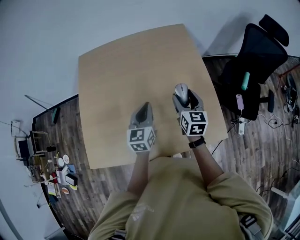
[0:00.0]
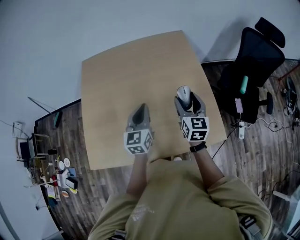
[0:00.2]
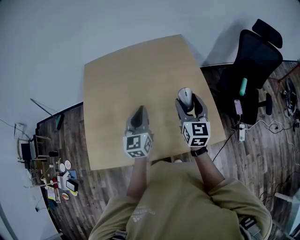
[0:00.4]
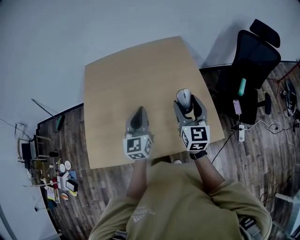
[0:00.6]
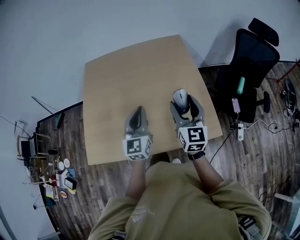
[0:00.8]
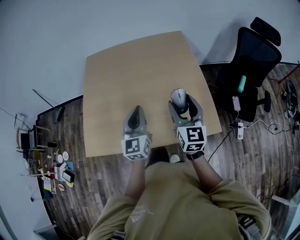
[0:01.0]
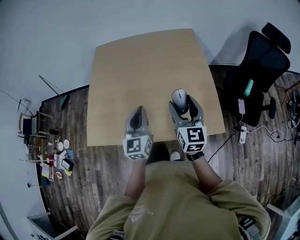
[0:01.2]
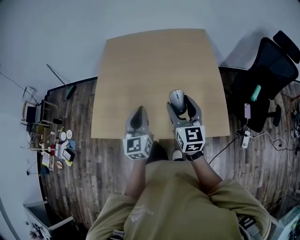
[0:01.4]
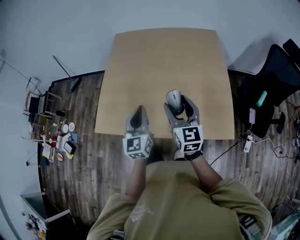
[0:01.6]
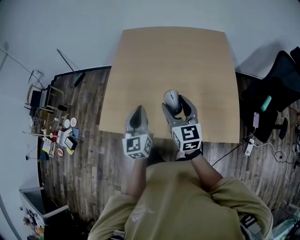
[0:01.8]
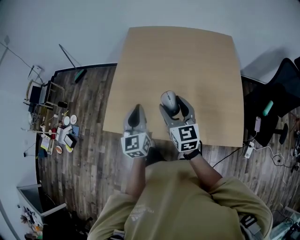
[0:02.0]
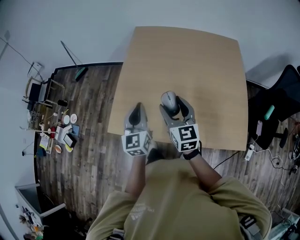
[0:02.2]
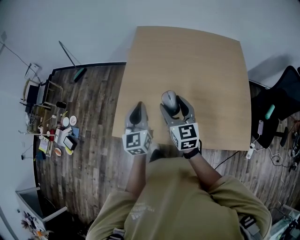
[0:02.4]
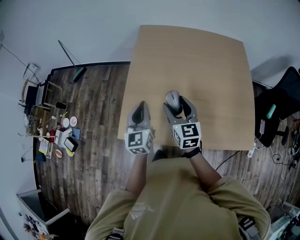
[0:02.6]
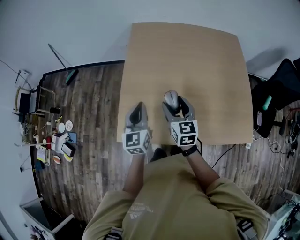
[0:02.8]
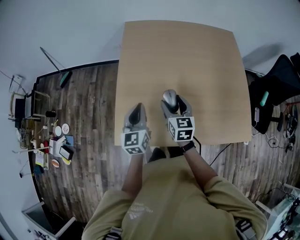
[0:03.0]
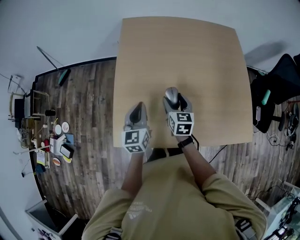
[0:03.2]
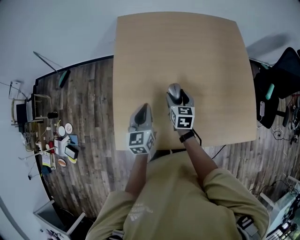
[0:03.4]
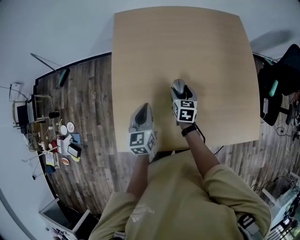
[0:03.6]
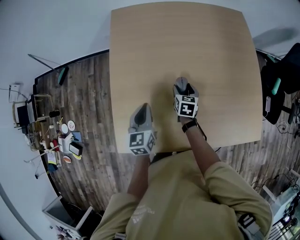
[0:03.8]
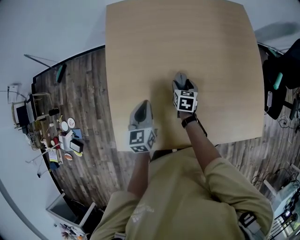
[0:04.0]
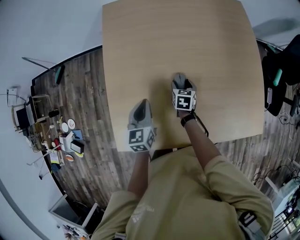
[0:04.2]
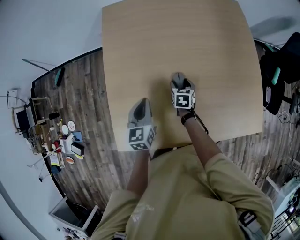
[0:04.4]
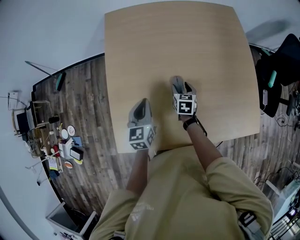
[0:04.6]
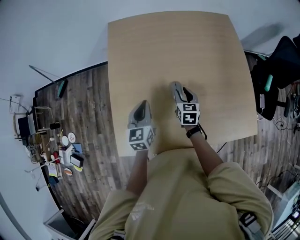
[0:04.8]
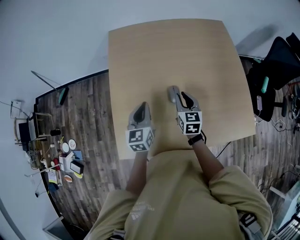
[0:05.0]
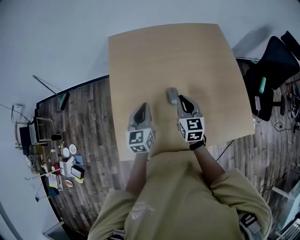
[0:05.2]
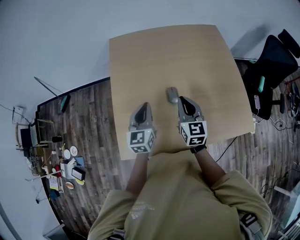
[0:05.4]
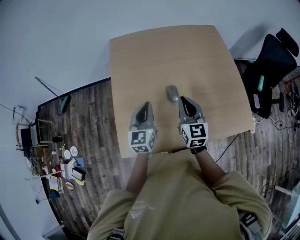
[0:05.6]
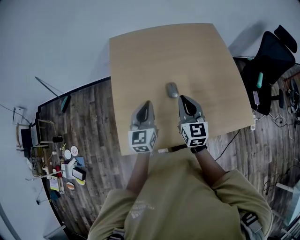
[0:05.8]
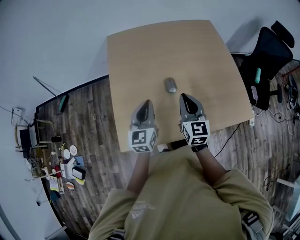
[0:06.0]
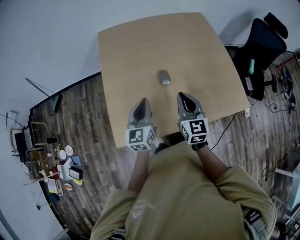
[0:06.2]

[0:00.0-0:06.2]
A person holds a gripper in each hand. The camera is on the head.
0:00.0 to 0:01.6: The left gripper goes about 20 cm backward and to the left, and turns by about 20 degrees; the right gripper heads backward, to the left and upward, covering roughly 25 cm, and swivels about 30 degrees.
0:01.6 to 0:03.2: The grippers both shift to the left, forward and downward by approximately 35 cm. The right gripper swivels approximately 30 degrees.
0:03.2 to 0:04.6: The right gripper shifts some 20 cm downward, forward and to the right. The left gripper moves forward and downward, approximately 10 cm.
0:04.6 to 0:06.2: The left gripper moves backward and upward, some 15 cm; the right gripper goes about 30 cm upward and backward, tips its fingers upward by approximately 30 degrees, and closes.

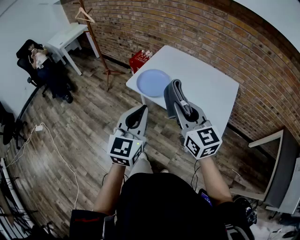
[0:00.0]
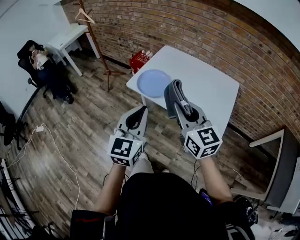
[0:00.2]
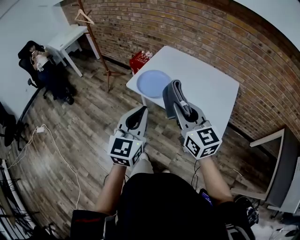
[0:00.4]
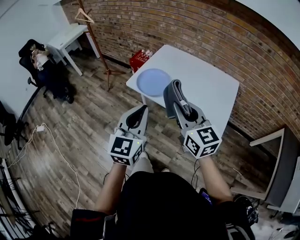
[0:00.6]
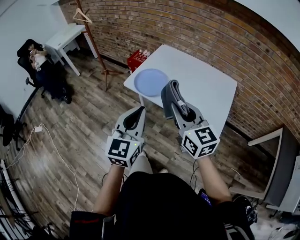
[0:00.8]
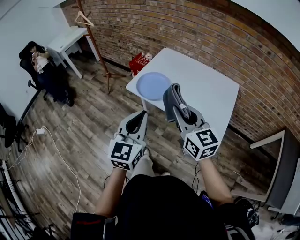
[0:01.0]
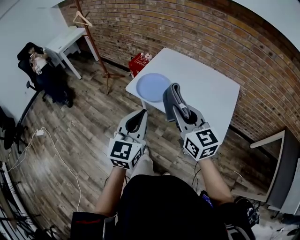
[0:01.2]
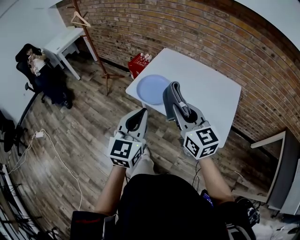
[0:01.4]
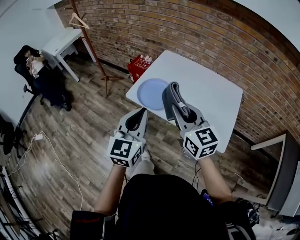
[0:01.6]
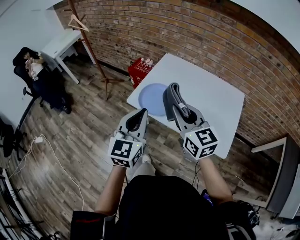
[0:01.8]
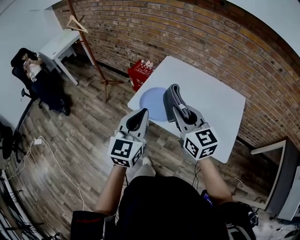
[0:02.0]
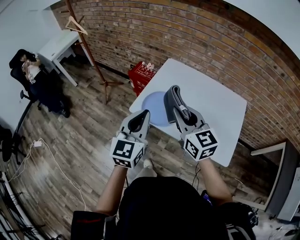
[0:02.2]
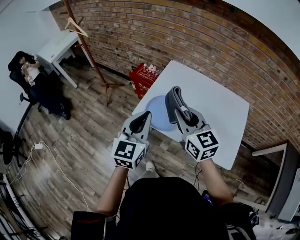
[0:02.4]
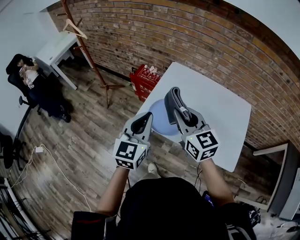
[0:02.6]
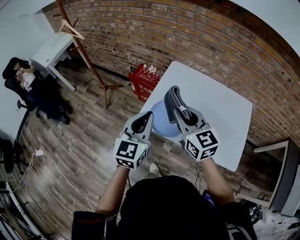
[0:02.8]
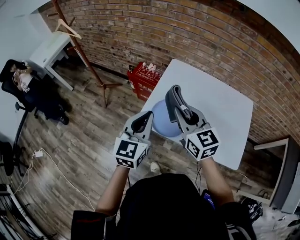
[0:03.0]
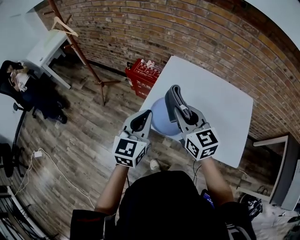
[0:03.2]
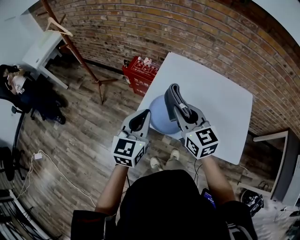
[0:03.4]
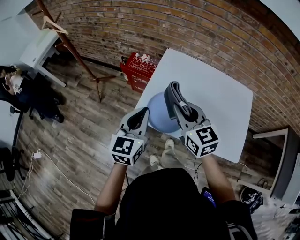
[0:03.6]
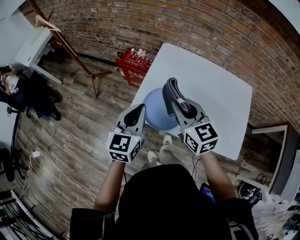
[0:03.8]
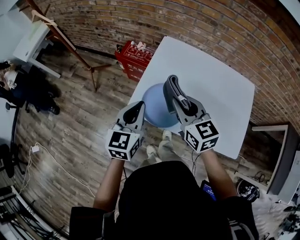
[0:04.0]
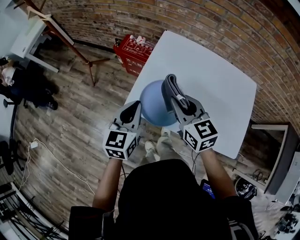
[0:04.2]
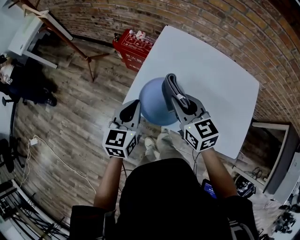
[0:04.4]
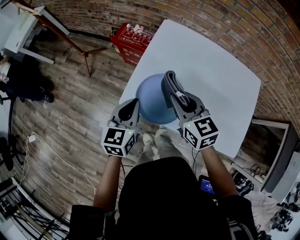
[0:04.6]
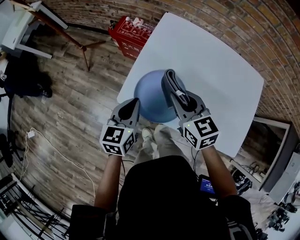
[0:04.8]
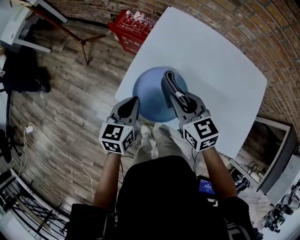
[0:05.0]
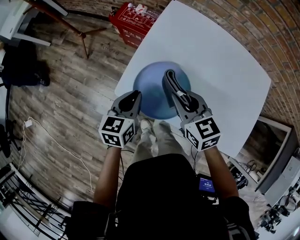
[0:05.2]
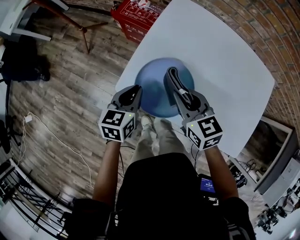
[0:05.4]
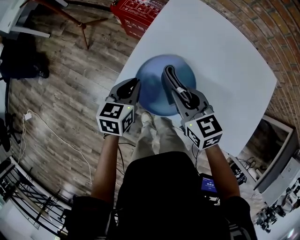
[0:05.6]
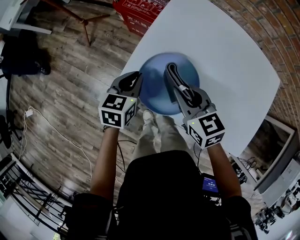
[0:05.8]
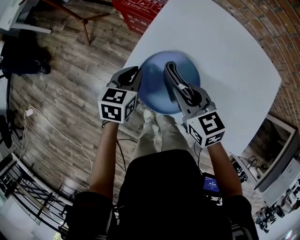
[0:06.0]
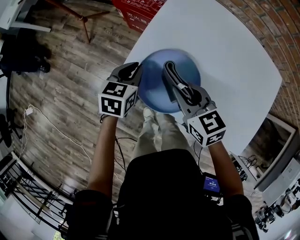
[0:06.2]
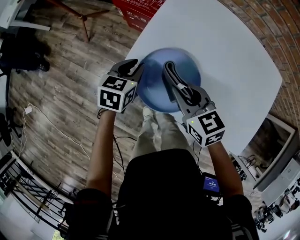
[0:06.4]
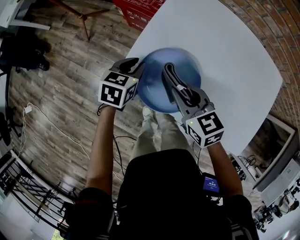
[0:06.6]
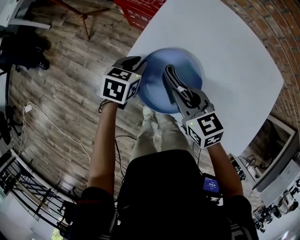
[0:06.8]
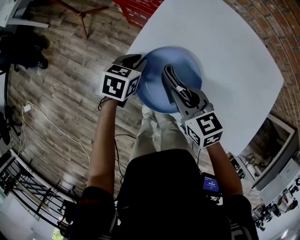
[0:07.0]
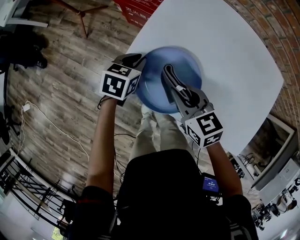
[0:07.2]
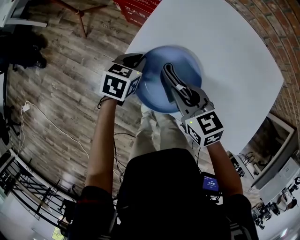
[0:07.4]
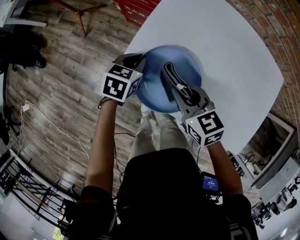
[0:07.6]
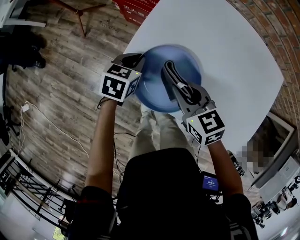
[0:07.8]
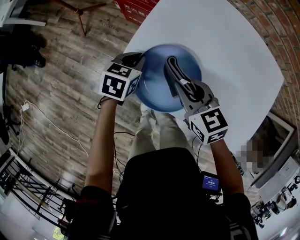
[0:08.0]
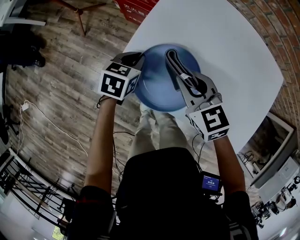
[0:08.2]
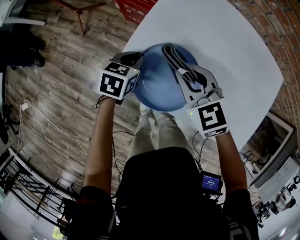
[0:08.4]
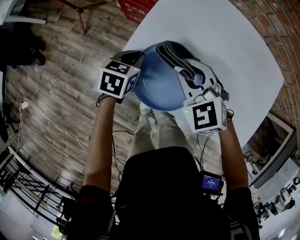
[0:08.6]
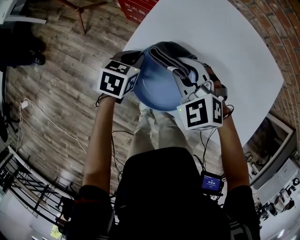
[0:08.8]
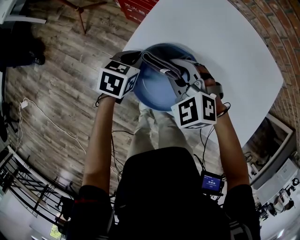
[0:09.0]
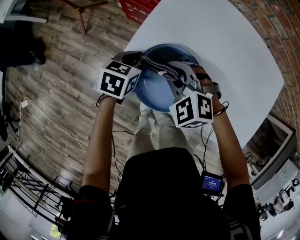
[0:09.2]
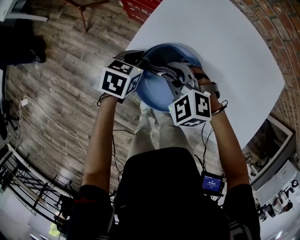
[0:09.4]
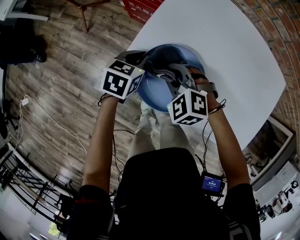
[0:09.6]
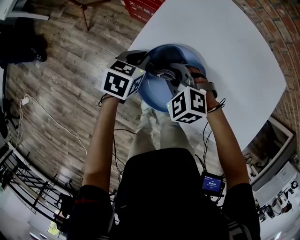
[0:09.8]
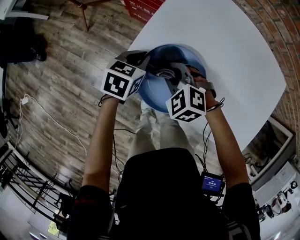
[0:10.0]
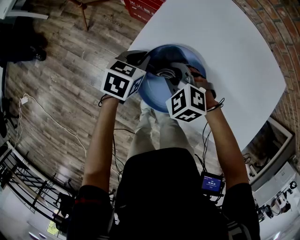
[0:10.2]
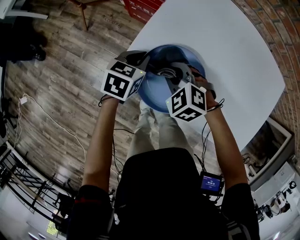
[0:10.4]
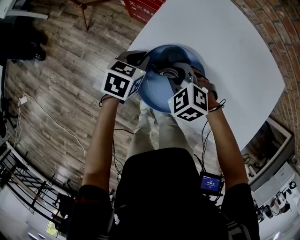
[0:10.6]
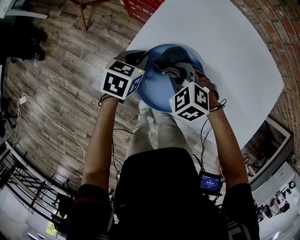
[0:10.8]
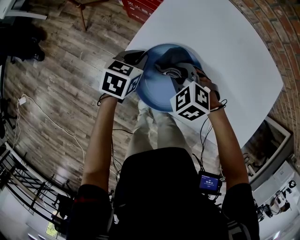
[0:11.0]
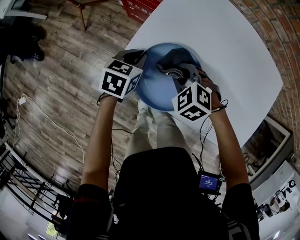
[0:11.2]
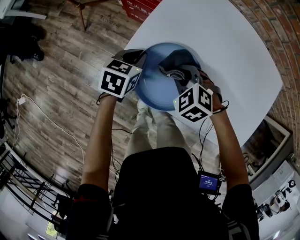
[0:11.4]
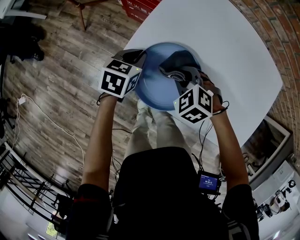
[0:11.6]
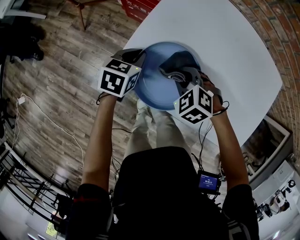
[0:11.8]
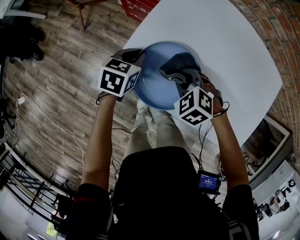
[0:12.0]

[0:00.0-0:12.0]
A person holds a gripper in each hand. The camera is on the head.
0:00.0 to 0:01.6: The grippers both shift forward by about 10 cm.
0:01.6 to 0:03.0: The two grippers go some 20 cm forward and to the left.
0:03.0 to 0:04.4: Both grippers move downward and forward, about 15 cm.
0:04.4 to 0:06.0: The left gripper is displaced downward and forward by roughly 15 cm. Meanwhile the right gripper heads downward, covering approximately 10 cm.
0:06.0 to 0:07.6: The left gripper changes place by roughly 5 cm.
0:07.6 to 0:09.0: The right gripper ends up roughly 5 cm from where it was, and rotates around the line of its fingers by some 50 degrees, counterclockwise from behind.
0:09.0 to 0:10.4: The right gripper shifts some 5 cm downward.
0:10.4 to 0:12.0: The right gripper travels to the right by some 5 cm.

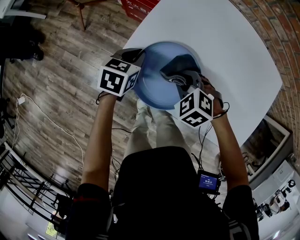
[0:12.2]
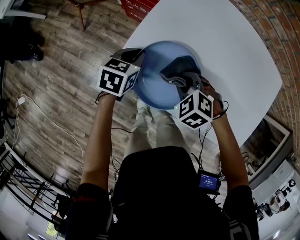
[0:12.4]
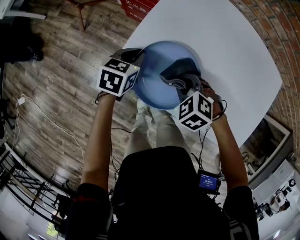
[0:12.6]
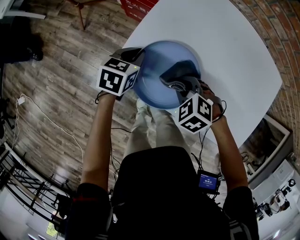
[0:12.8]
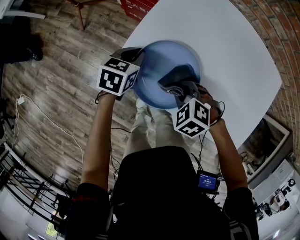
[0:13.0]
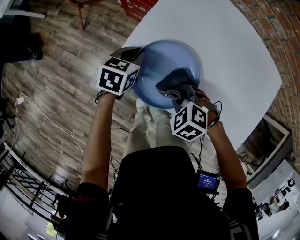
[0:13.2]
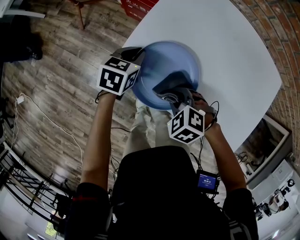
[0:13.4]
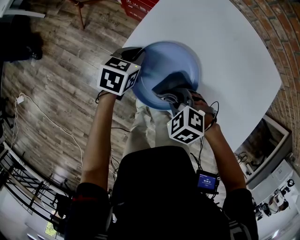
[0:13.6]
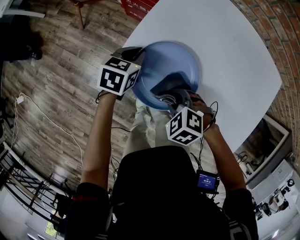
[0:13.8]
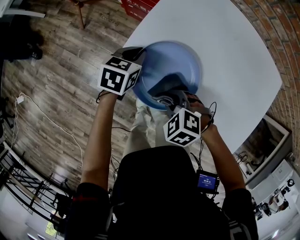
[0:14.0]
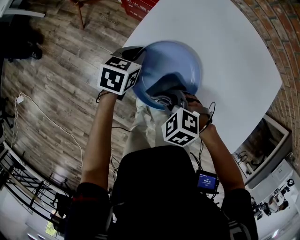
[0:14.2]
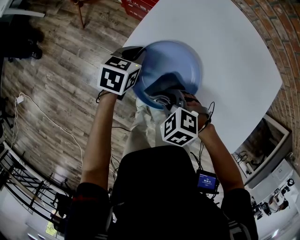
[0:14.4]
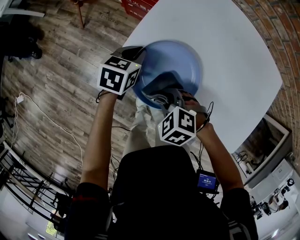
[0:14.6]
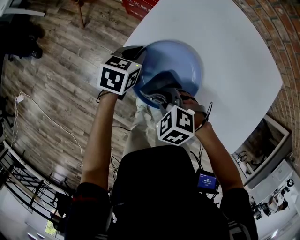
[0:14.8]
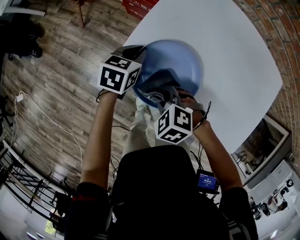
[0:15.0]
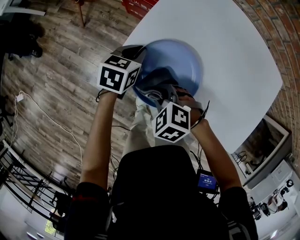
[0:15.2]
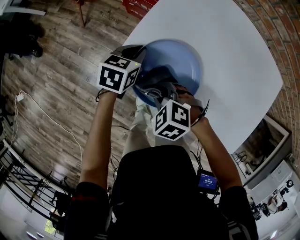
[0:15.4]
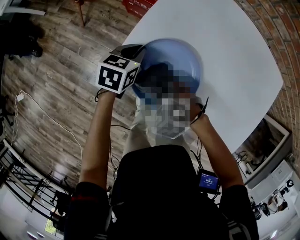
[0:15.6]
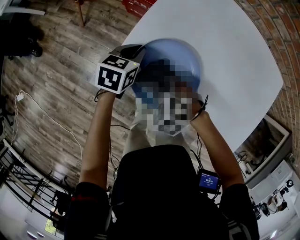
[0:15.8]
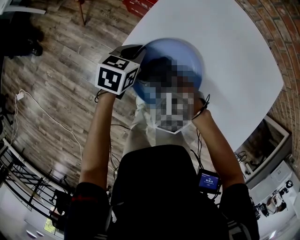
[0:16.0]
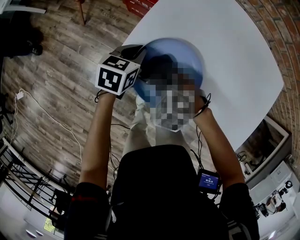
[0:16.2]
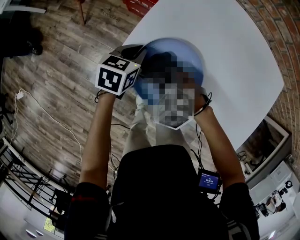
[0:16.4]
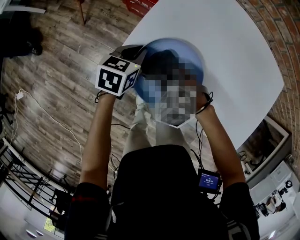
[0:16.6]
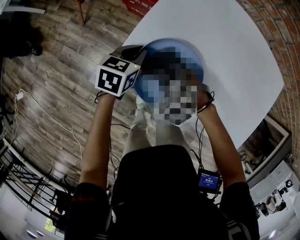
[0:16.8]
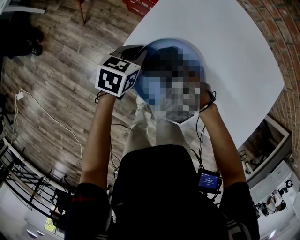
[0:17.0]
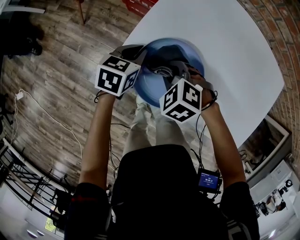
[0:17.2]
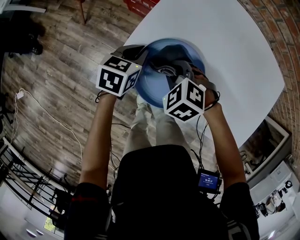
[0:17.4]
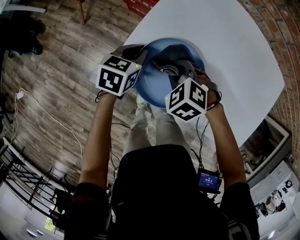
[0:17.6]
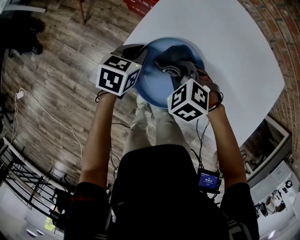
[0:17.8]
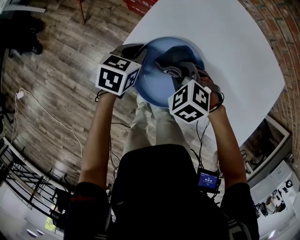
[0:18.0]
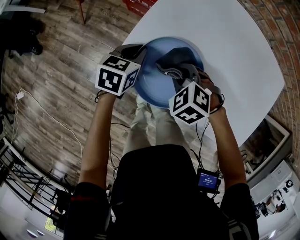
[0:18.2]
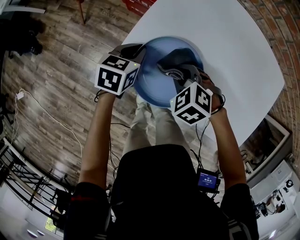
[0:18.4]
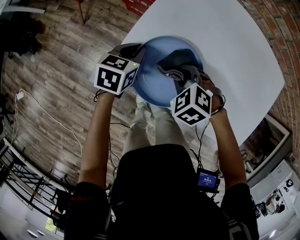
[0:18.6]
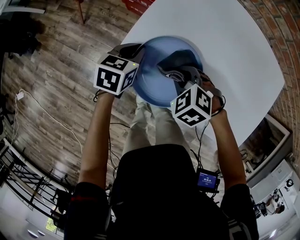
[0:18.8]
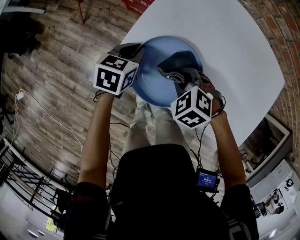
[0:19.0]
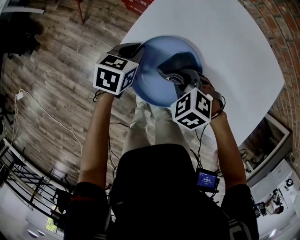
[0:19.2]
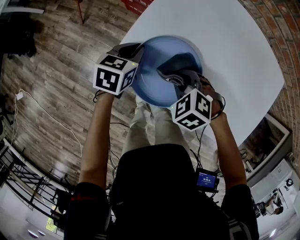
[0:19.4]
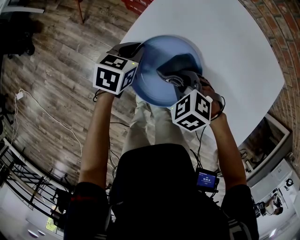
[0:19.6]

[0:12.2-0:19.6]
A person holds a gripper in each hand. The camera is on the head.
0:12.2 to 0:13.6: The right gripper heads backward, covering about 5 cm.
0:13.6 to 0:15.2: The right gripper is displaced to the left by roughly 5 cm.
0:15.2 to 0:16.6: The right gripper shifts some 5 cm forward.
0:16.6 to 0:18.2: The right gripper moves to the right, about 5 cm.
0:18.2 to 0:19.6: The grippers stay close to where they were, moving slightly.
